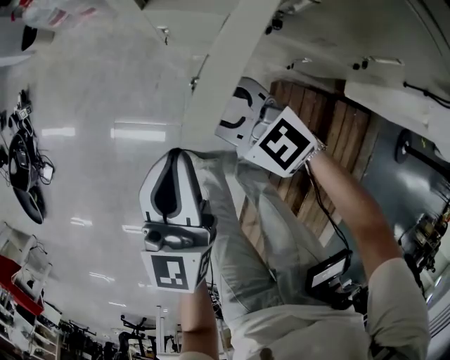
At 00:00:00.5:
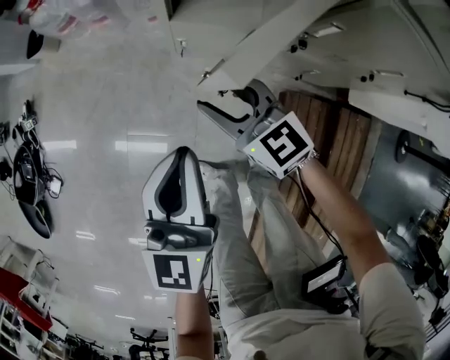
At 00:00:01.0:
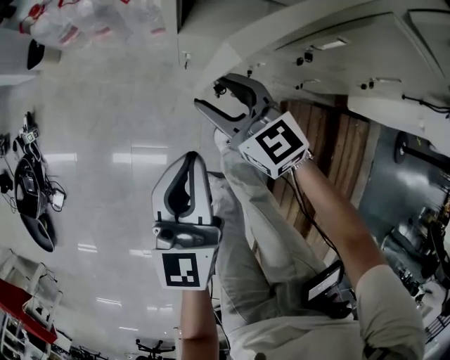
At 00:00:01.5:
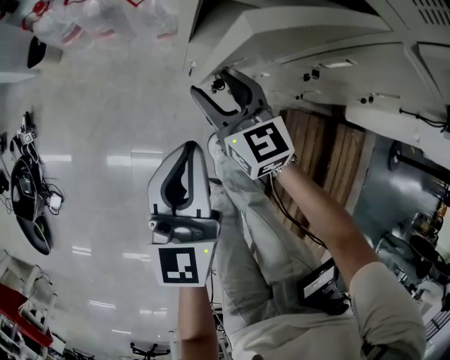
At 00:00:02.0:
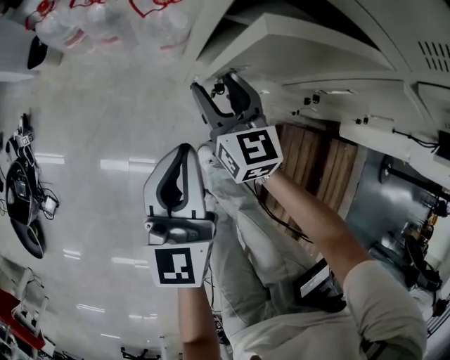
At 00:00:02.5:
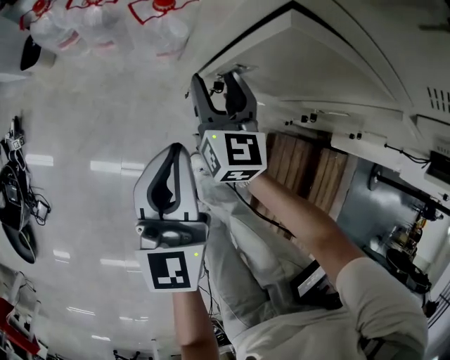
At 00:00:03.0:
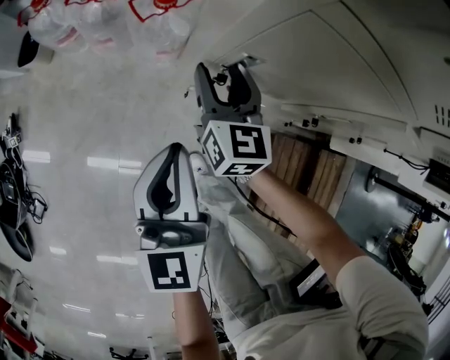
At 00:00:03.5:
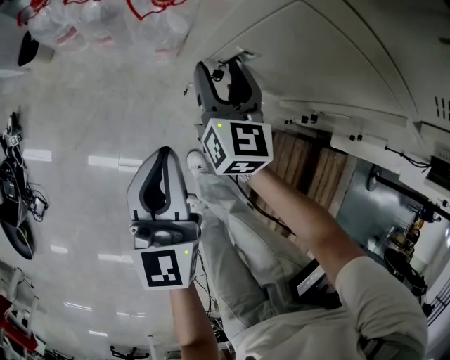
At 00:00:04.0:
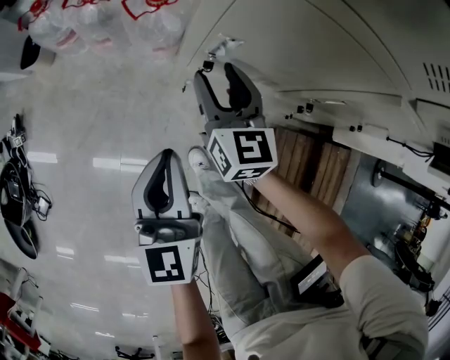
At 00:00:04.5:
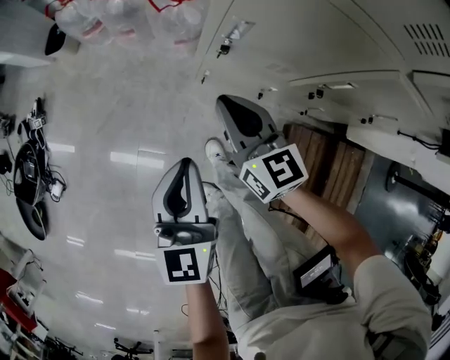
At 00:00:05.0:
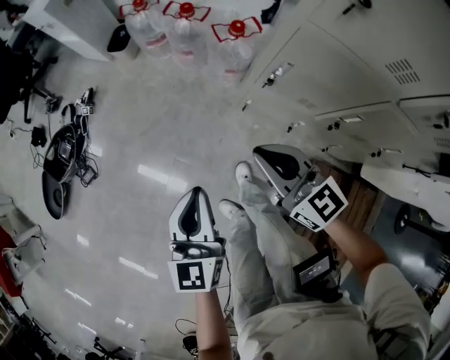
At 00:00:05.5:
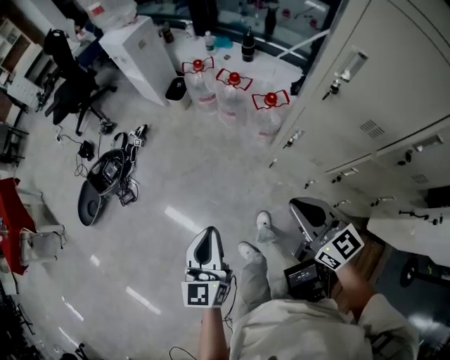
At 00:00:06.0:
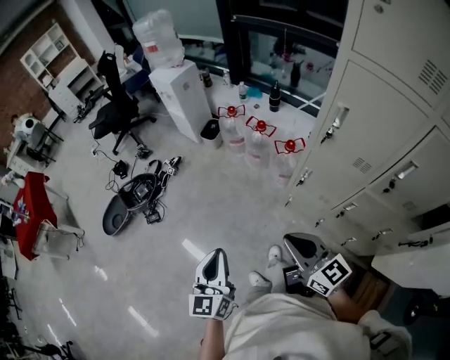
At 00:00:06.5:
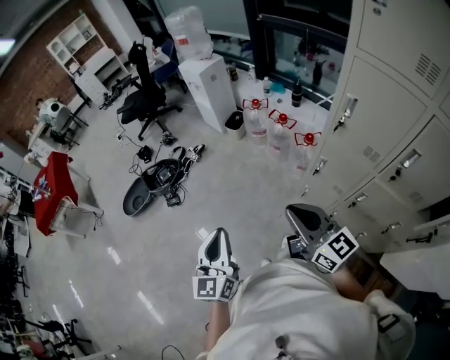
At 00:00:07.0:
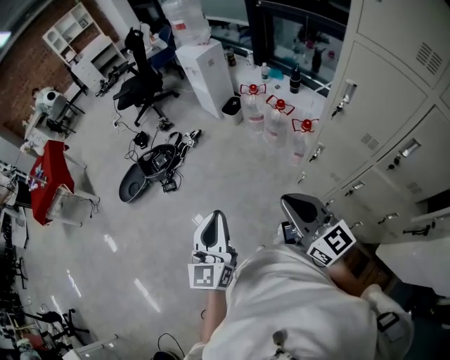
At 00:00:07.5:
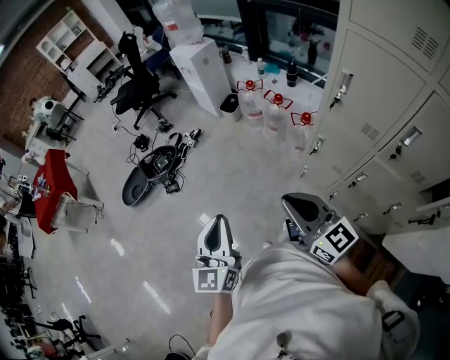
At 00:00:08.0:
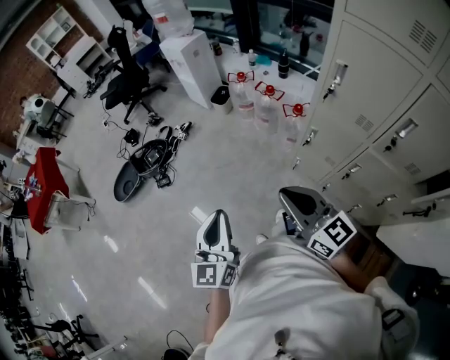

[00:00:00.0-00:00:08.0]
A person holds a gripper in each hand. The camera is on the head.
00:00:00.0 to 00:00:02.0: The left gripper is displaced forward and to the left by roughly 20 cm; the right gripper travels forward by approximately 20 cm, and turns by about 40 degrees.
00:00:04.0 to 00:00:06.0: The left gripper shifts by about 40 cm, and rotates approximately 30 degrees. Meanwhile the right gripper is displaced upward by about 35 cm, swivels some 50 degrees, and closes its fingers.
00:00:06.0 to 00:00:08.0: The right gripper is displaced upward by approximately 5 cm, while the left gripper goes approximately 10 cm upward and backward.

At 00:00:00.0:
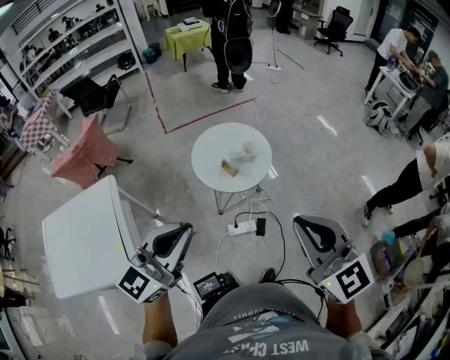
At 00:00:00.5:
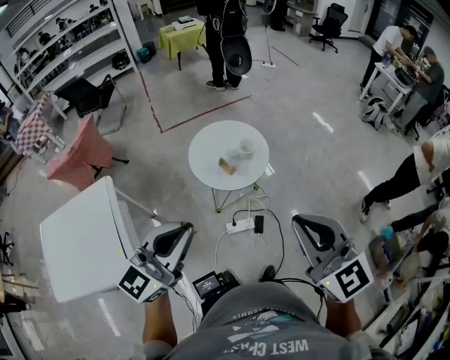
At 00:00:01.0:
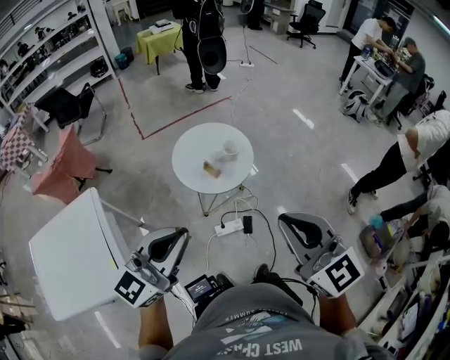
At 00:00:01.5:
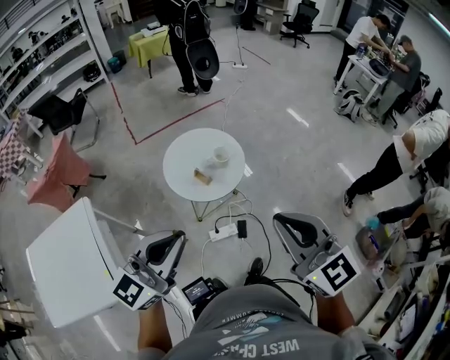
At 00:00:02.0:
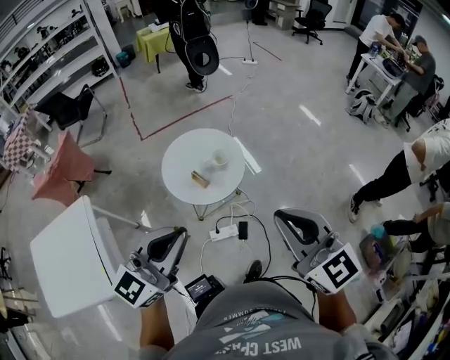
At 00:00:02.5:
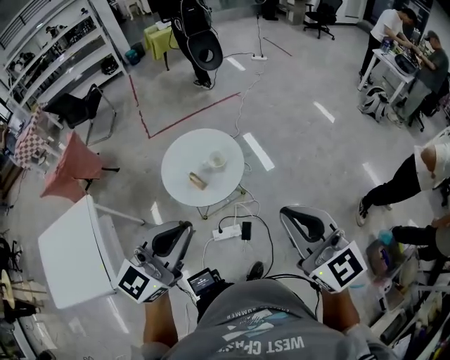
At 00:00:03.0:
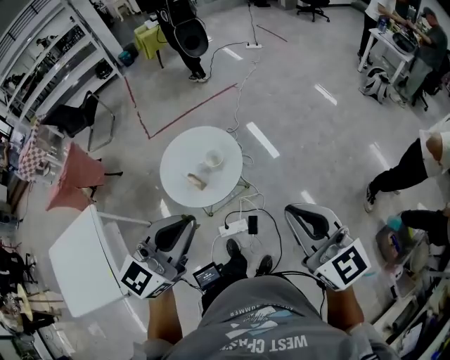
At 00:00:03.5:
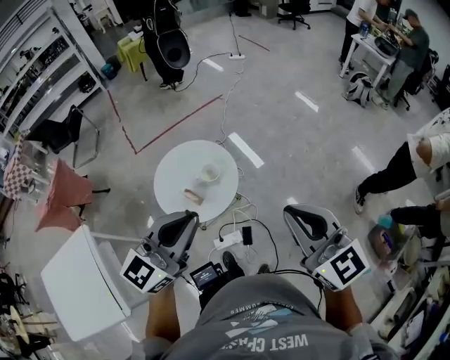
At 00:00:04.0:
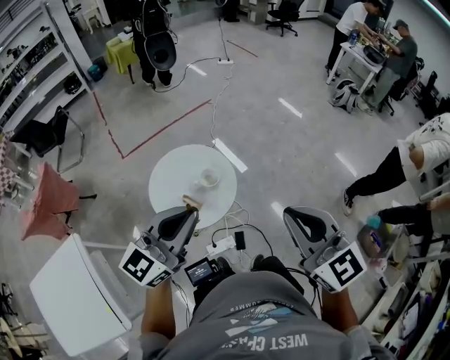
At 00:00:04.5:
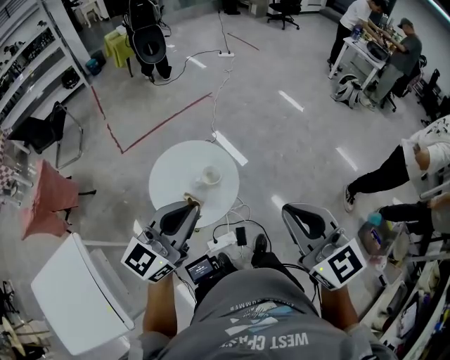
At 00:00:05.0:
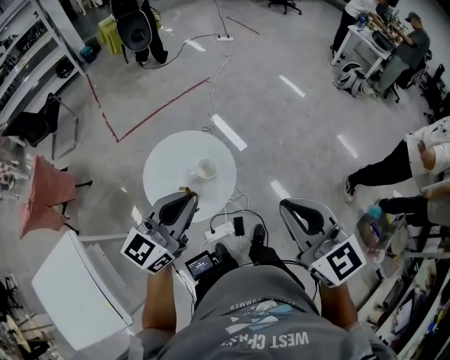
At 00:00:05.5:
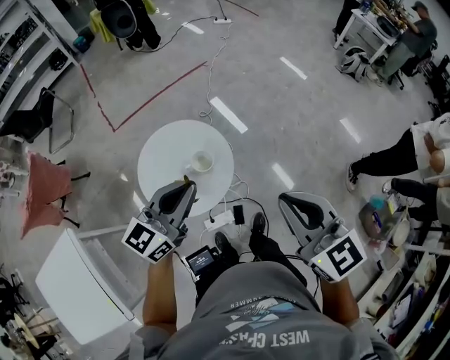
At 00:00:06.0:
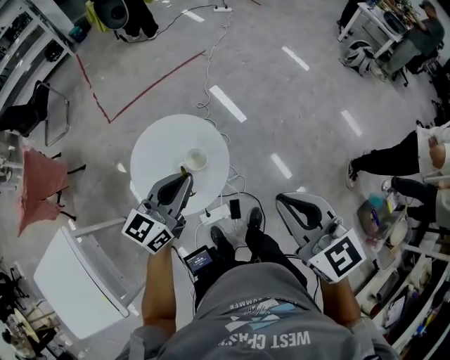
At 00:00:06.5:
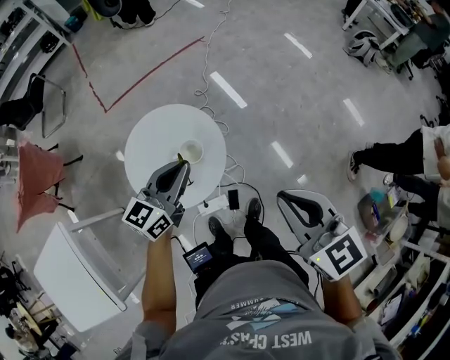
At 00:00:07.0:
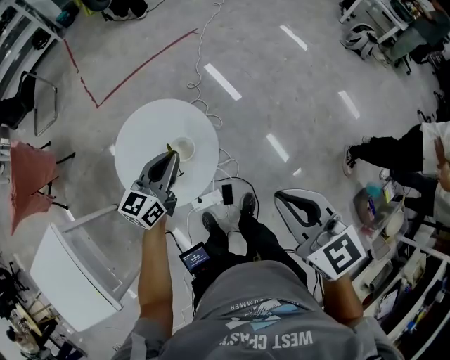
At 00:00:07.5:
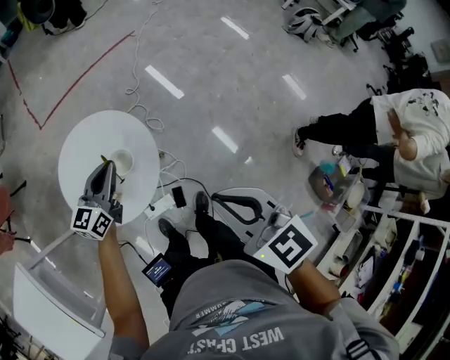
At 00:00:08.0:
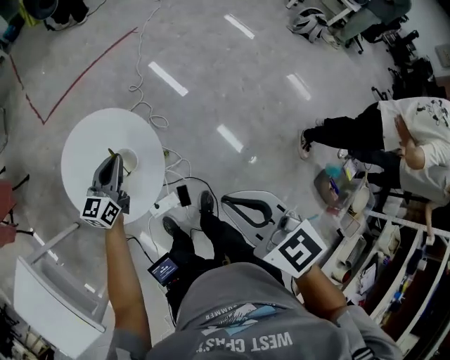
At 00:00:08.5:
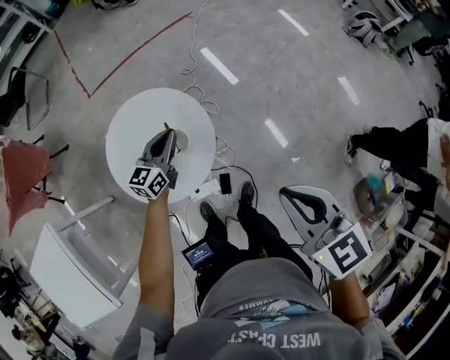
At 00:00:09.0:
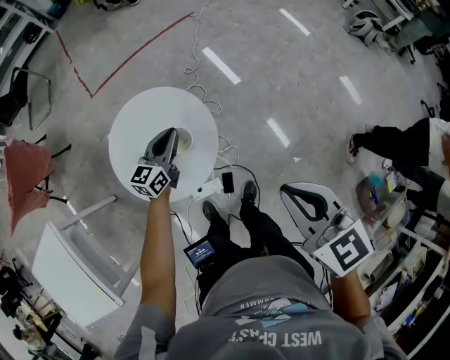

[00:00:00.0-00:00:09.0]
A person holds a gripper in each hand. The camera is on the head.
00:00:00.0 to 00:00:02.0: The right gripper is displaced forward and to the right by roughly 10 cm, while the left gripper moves to the right and forward, approximately 10 cm.
00:00:02.0 to 00:00:04.5: The right gripper travels forward by approximately 10 cm. The left gripper is displaced forward by approximately 20 cm.
00:00:04.5 to 00:00:07.0: The left gripper moves downward and forward, roughly 25 cm, and changes its angle by about 20 degrees. Meanwhile the right gripper is displaced downward and forward by some 15 cm.
00:00:07.0 to 00:00:09.0: The left gripper goes some 10 cm downward and forward.

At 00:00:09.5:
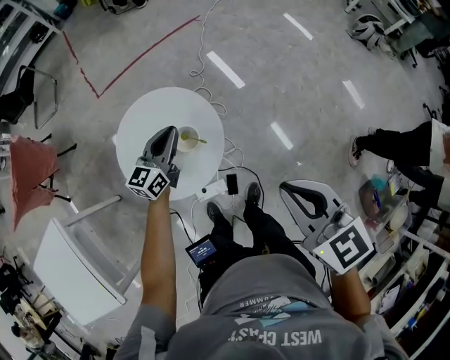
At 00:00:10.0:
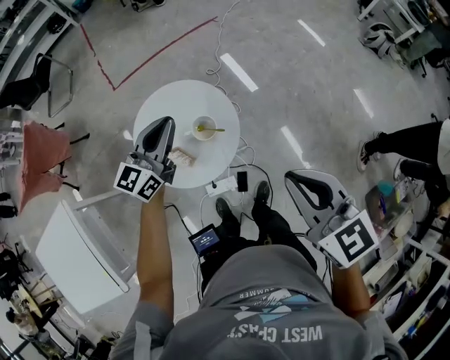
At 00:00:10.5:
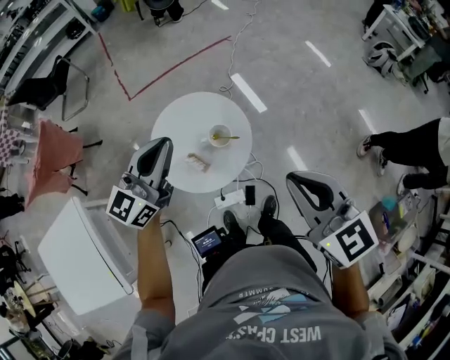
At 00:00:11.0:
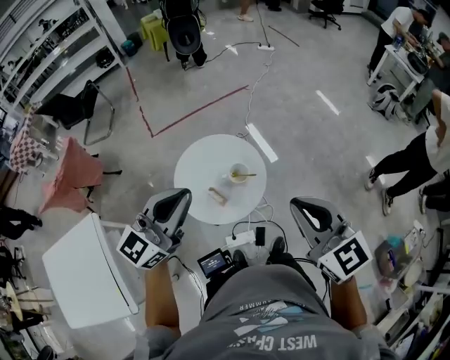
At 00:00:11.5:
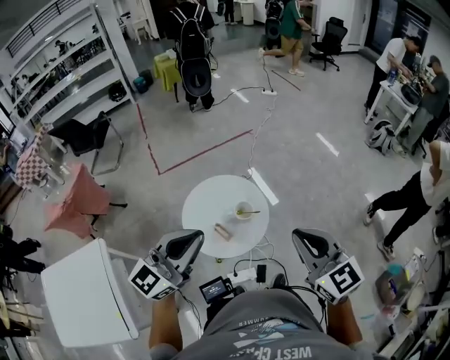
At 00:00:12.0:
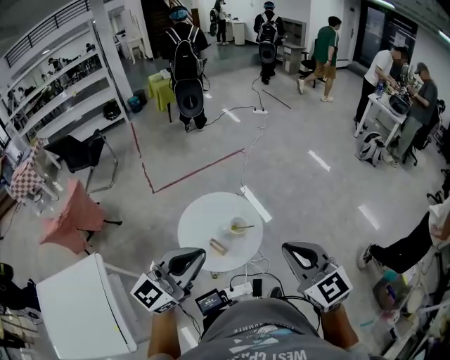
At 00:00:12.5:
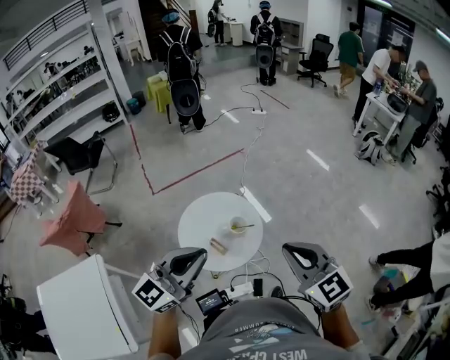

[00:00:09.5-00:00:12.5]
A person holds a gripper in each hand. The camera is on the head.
00:00:09.5 to 00:00:11.0: The left gripper shifts some 35 cm upward and backward, and swivels approximately 20 degrees; the right gripper goes about 10 cm upward and to the left.
00:00:11.0 to 00:00:12.5: The left gripper heads backward, covering approximately 5 cm.

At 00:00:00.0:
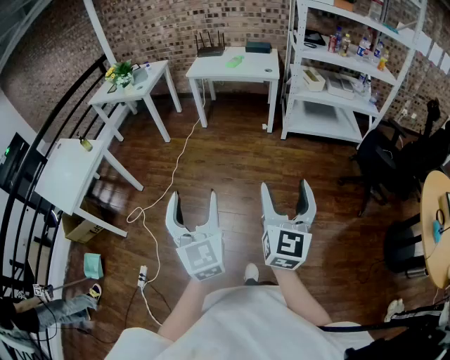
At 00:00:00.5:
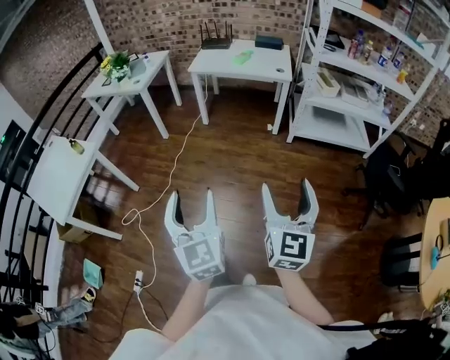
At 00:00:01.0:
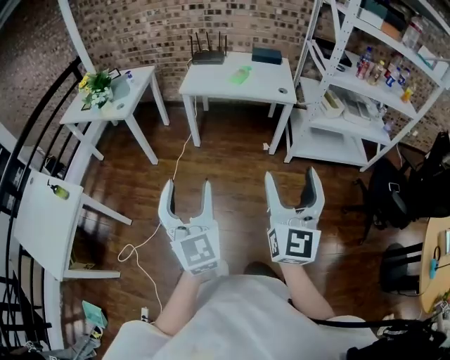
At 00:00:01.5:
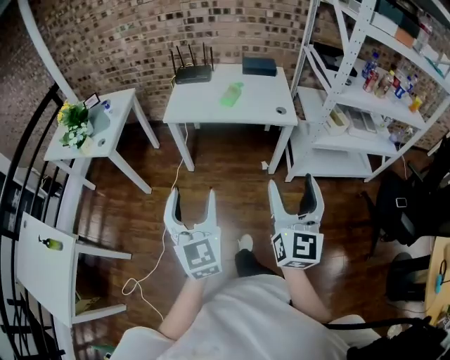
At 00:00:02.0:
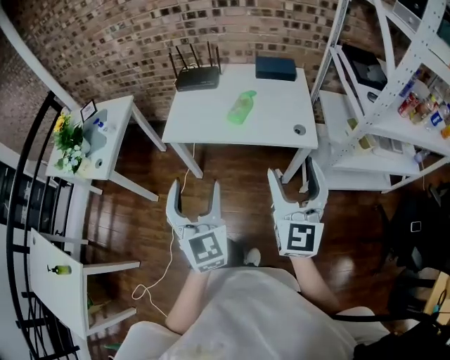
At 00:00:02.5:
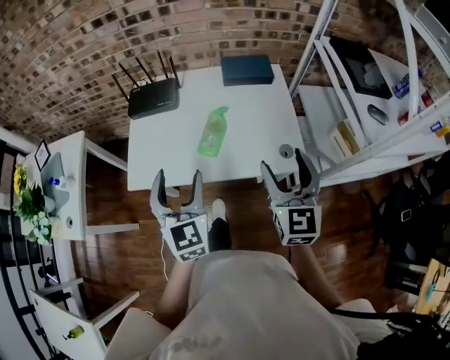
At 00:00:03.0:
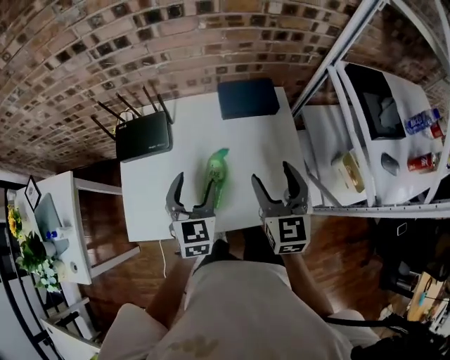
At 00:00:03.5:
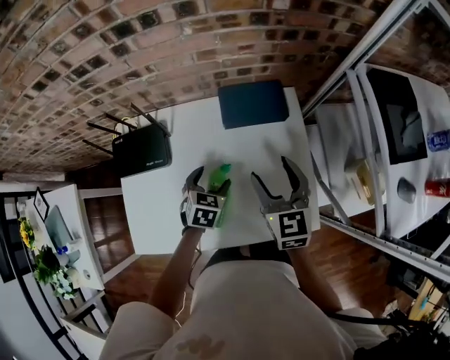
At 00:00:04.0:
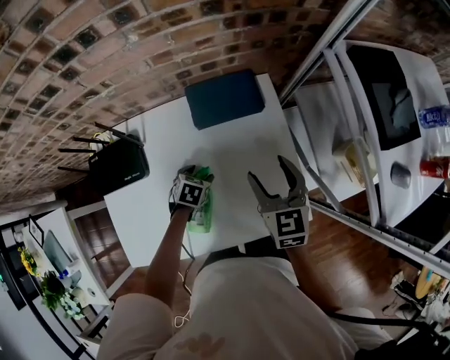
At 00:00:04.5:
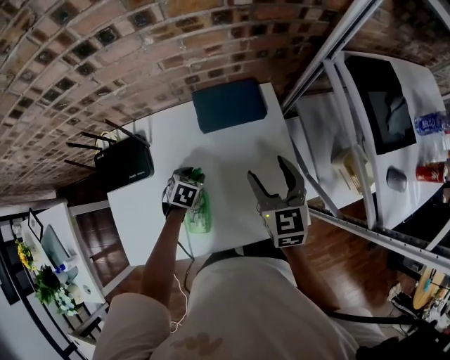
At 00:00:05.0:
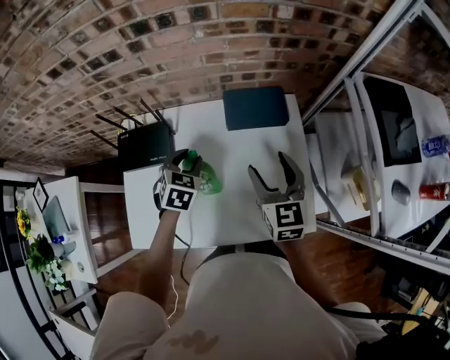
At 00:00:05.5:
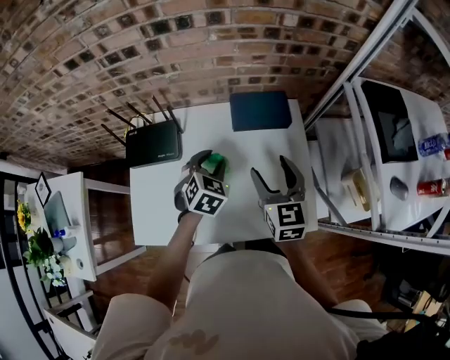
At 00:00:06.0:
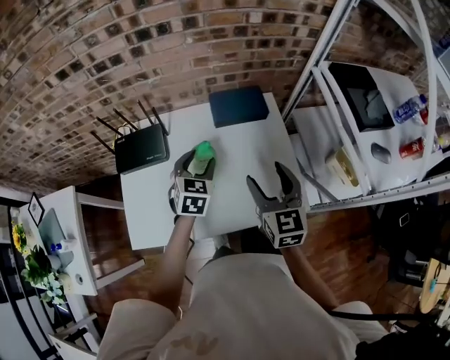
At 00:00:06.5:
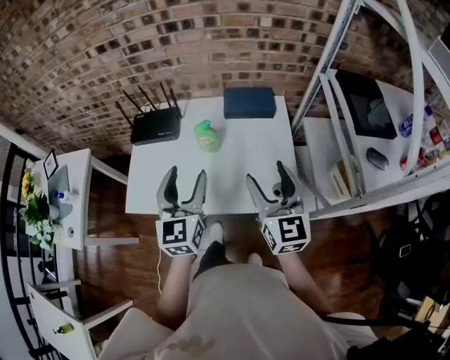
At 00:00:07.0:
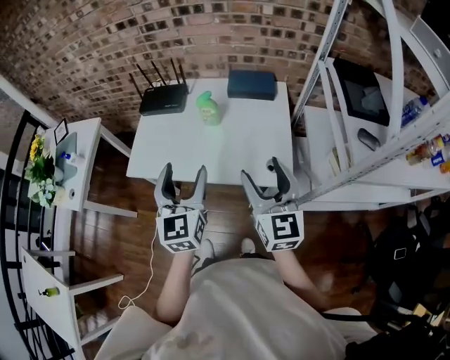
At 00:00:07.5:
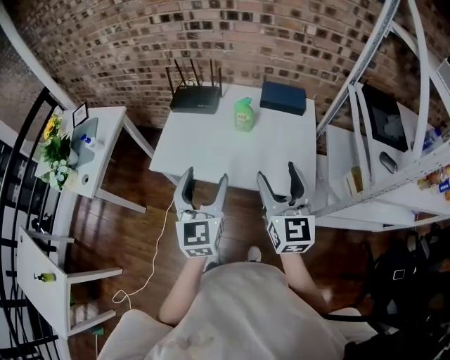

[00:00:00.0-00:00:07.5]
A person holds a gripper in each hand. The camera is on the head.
00:00:00.0 to 00:00:02.0: The pair of grippers is taken forward, some 90 cm.
00:00:02.0 to 00:00:04.0: The pair of grippers is taken about 60 cm. The right gripper tips its fingers downward by about 30 degrees. The left gripper tilts its fingers some 60 degrees downward.
00:00:04.0 to 00:00:05.5: The right gripper is displaced to the left and upward by about 10 cm. The left gripper moves upward, approximately 20 cm, and swivels roughly 30 degrees.
00:00:05.5 to 00:00:07.5: The left gripper is displaced backward and upward by some 40 cm, angles its fingers upward, by approximately 40 degrees, and opens. The right gripper shifts about 30 cm backward, and rotates roughly 20 degrees.
